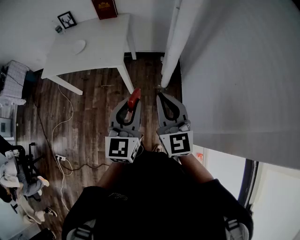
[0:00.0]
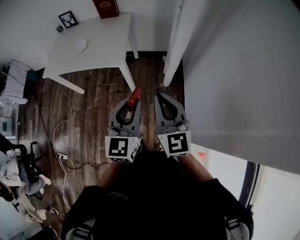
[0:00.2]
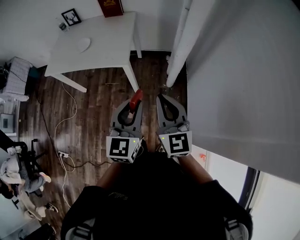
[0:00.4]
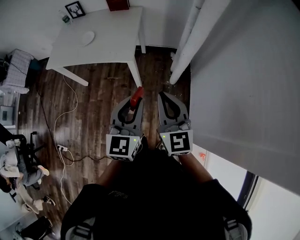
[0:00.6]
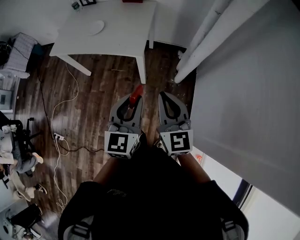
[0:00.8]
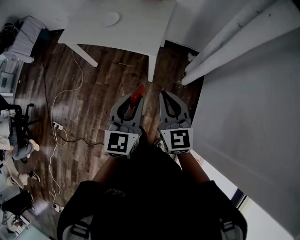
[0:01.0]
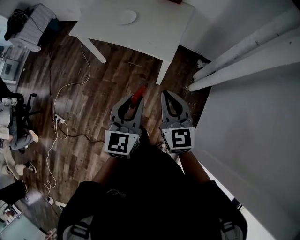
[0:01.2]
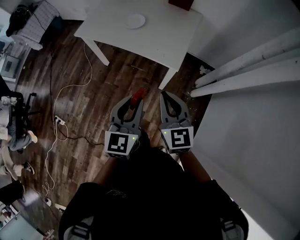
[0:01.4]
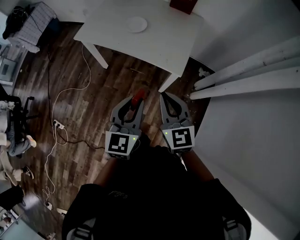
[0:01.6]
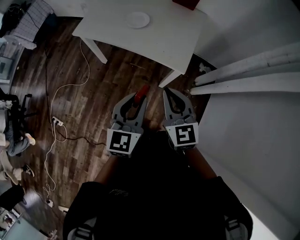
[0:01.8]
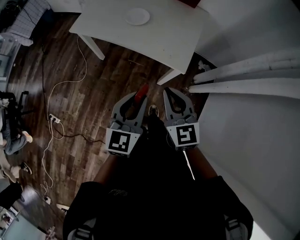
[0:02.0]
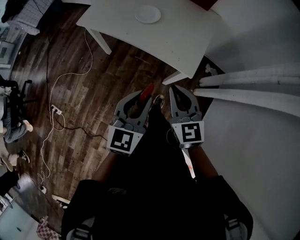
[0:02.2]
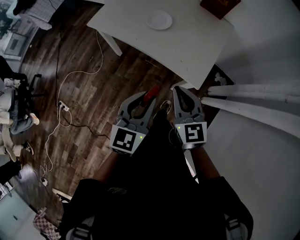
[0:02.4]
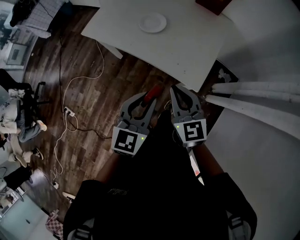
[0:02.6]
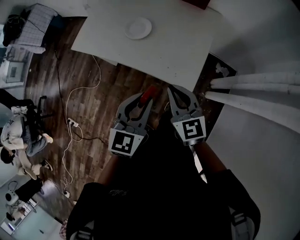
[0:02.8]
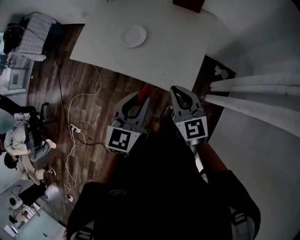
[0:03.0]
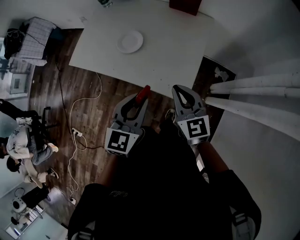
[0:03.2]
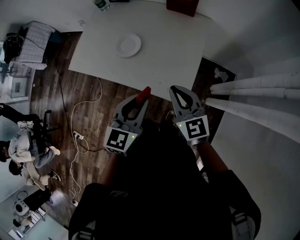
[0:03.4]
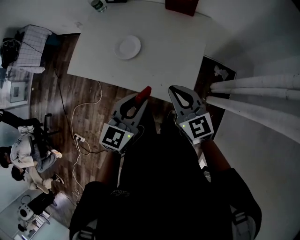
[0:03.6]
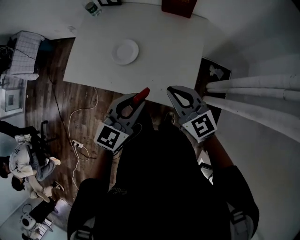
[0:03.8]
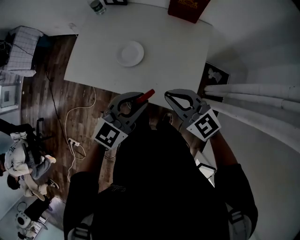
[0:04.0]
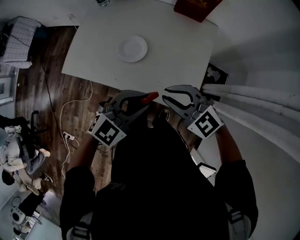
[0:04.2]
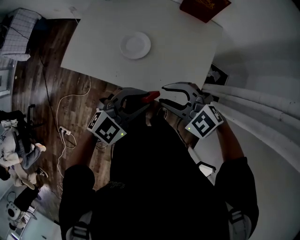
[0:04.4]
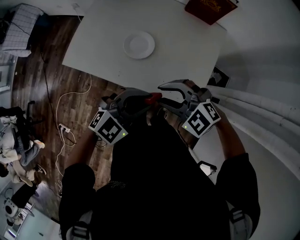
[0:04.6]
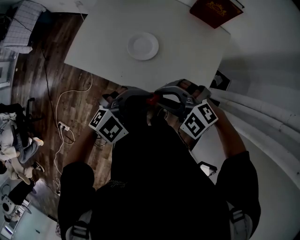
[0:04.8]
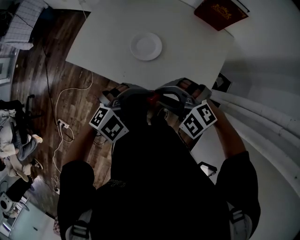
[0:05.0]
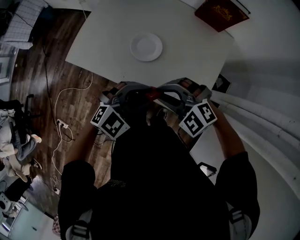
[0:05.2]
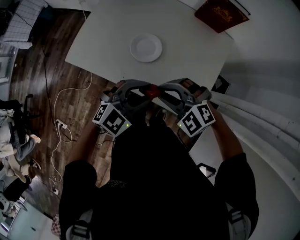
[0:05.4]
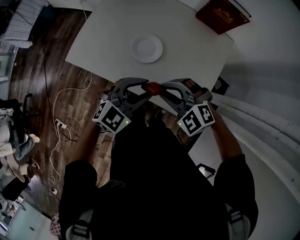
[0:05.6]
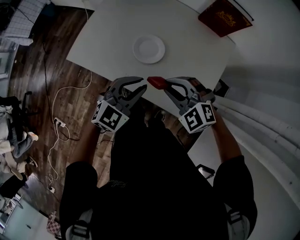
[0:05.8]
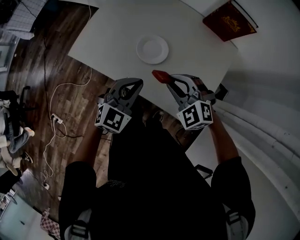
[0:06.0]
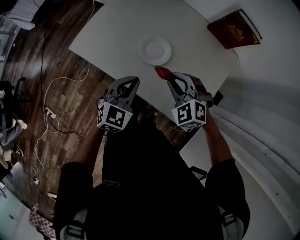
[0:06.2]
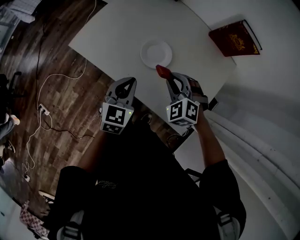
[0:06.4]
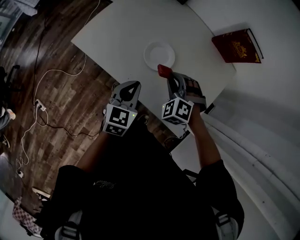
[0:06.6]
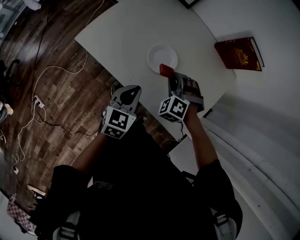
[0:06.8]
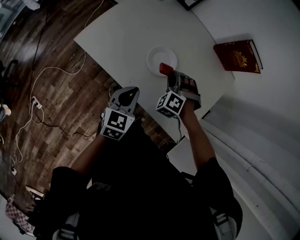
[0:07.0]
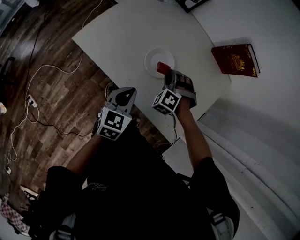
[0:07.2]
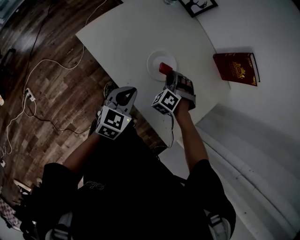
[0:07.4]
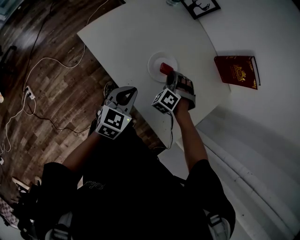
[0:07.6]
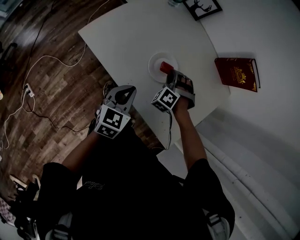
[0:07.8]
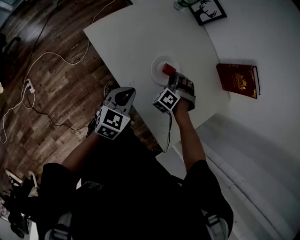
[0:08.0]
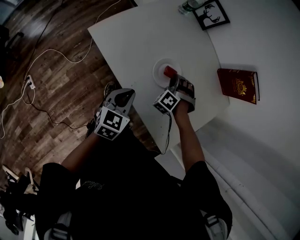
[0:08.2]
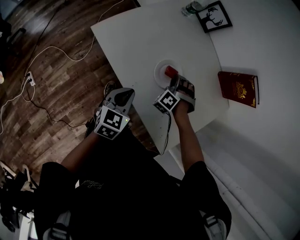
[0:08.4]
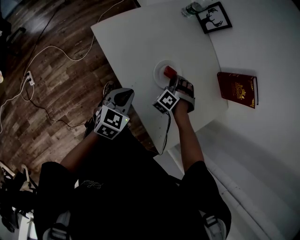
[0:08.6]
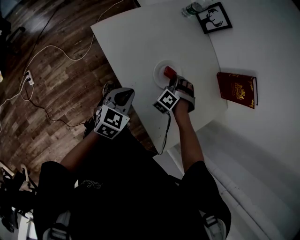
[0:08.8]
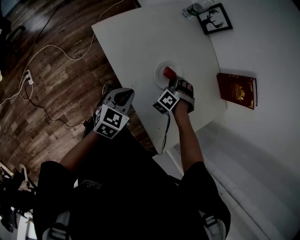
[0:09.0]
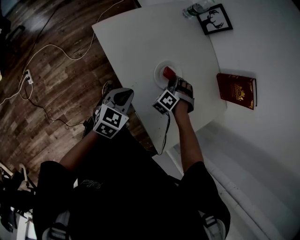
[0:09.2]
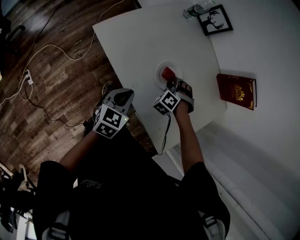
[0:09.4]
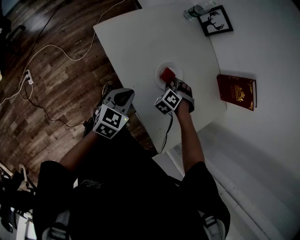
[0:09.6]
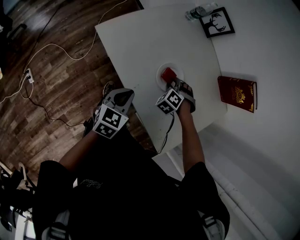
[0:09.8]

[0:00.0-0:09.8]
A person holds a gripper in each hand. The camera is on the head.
0:00.0 to 0:01.4: The grippers both shift to the left and forward by roughly 25 cm. The right gripper changes its angle by roughly 20 degrees.
0:01.4 to 0:02.8: The grippers both shift forward by roughly 20 cm.
0:02.8 to 0:04.2: The two grippers go roughly 10 cm forward. The right gripper swivels roughly 40 degrees, while the left gripper changes its angle by roughly 40 degrees.
0:04.2 to 0:05.6: The left gripper changes place by roughly 10 cm. The right gripper moves approximately 10 cm, and turns by some 30 degrees.
0:05.6 to 0:07.0: The left gripper moves to the left and downward, some 15 cm, rotates about 50 degrees, and closes. The right gripper heads forward and downward, covering approximately 20 cm, and changes its angle by approximately 40 degrees.
0:07.0 to 0:08.4: The right gripper changes place by approximately 5 cm.
0:08.4 to 0:09.8: There are only small adjustments of the grippers.

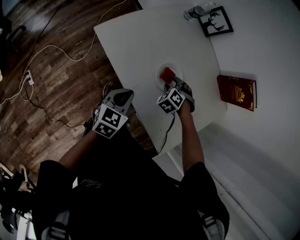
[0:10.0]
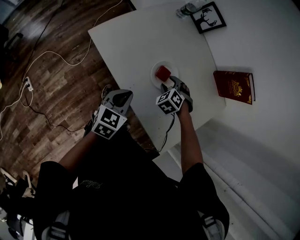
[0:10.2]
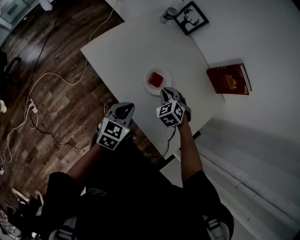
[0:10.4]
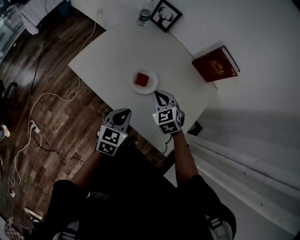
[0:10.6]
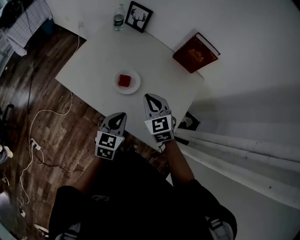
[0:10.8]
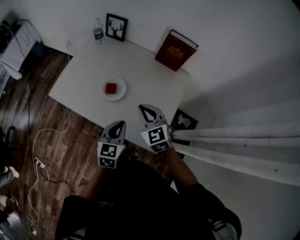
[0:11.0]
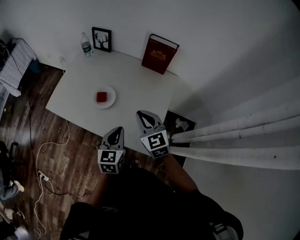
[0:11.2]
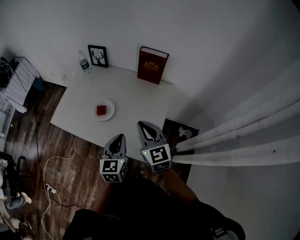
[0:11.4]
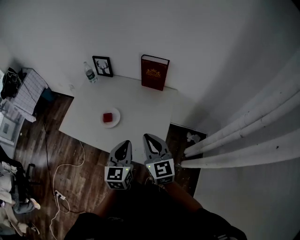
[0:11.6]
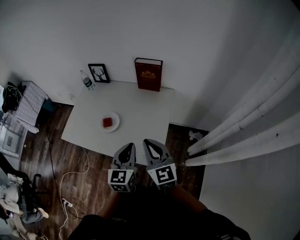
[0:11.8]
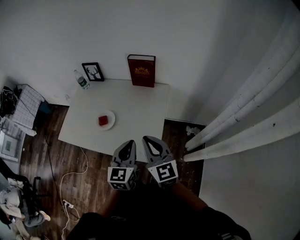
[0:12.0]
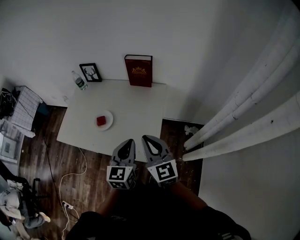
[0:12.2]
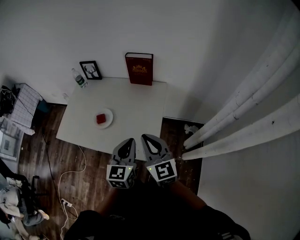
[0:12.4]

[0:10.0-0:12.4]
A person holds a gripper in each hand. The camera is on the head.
0:10.0 to 0:11.2: The left gripper heads to the right, covering approximately 25 cm. Meanwhile the right gripper moves upward, to the right and backward, approximately 35 cm, tilts its fingers roughly 50 degrees upward, and closes.
0:11.2 to 0:12.4: The right gripper travels backward, upward and to the right by about 15 cm, and swivels some 20 degrees. Meanwhile the left gripper moves to the right and upward, about 15 cm.

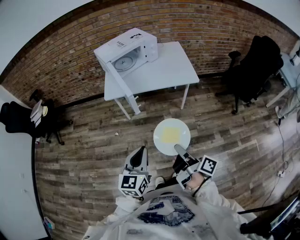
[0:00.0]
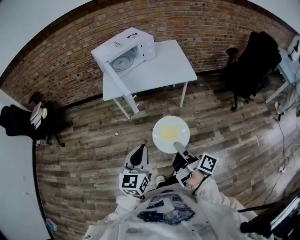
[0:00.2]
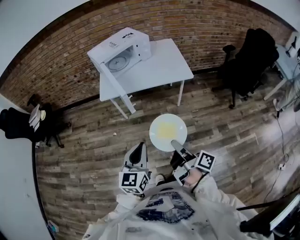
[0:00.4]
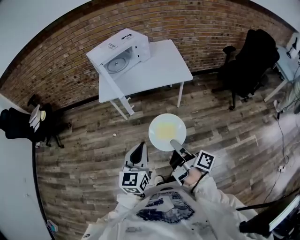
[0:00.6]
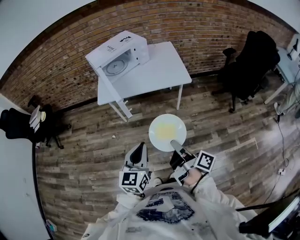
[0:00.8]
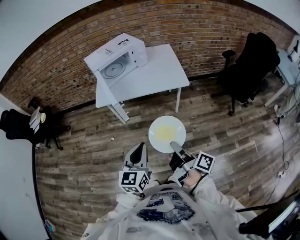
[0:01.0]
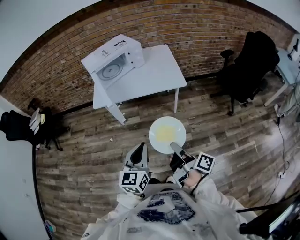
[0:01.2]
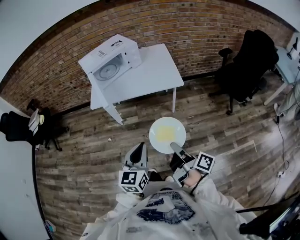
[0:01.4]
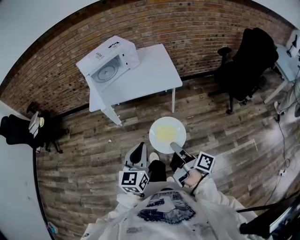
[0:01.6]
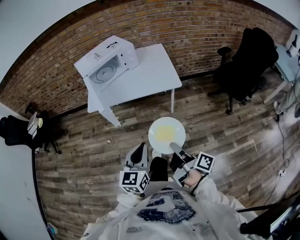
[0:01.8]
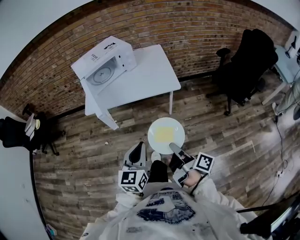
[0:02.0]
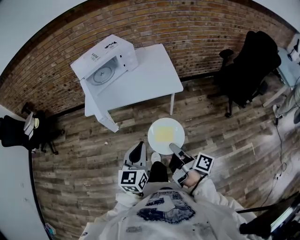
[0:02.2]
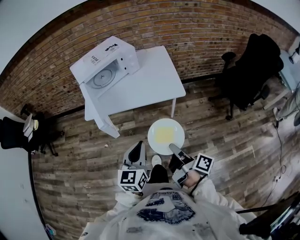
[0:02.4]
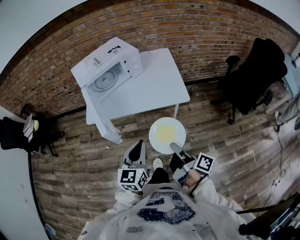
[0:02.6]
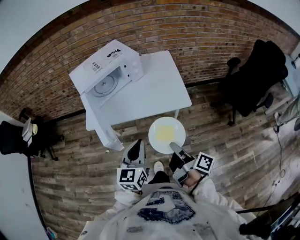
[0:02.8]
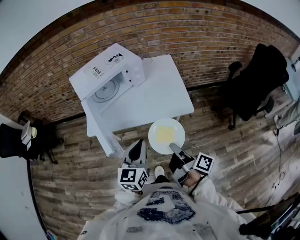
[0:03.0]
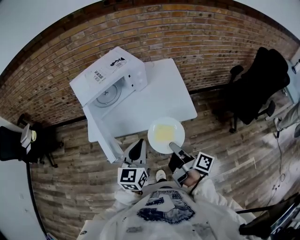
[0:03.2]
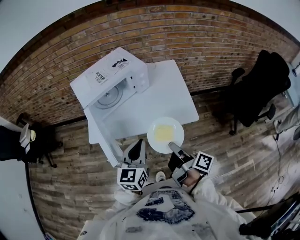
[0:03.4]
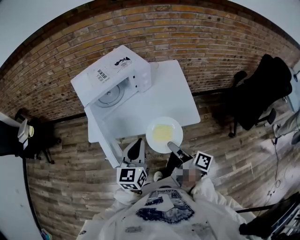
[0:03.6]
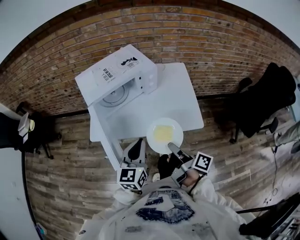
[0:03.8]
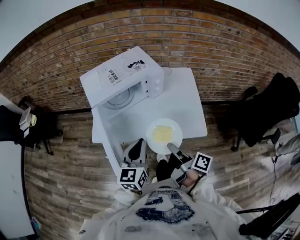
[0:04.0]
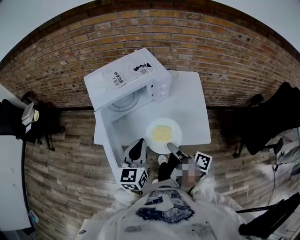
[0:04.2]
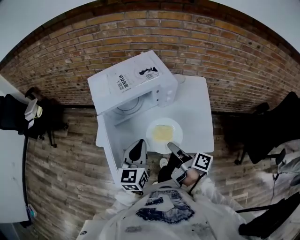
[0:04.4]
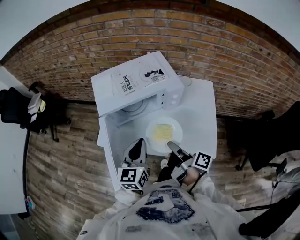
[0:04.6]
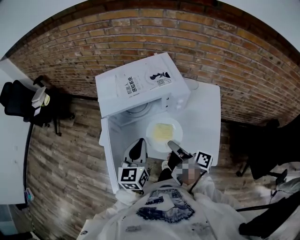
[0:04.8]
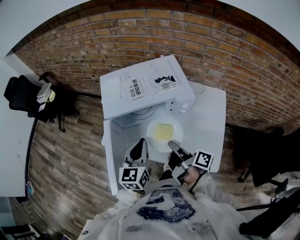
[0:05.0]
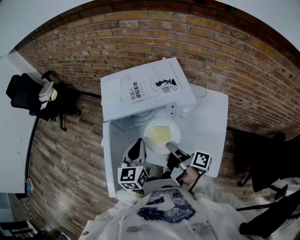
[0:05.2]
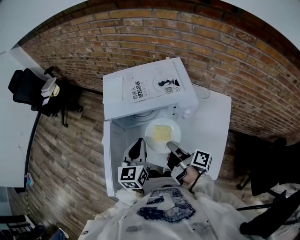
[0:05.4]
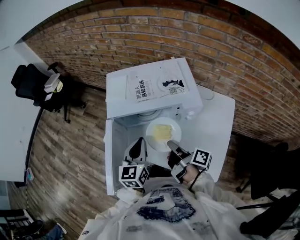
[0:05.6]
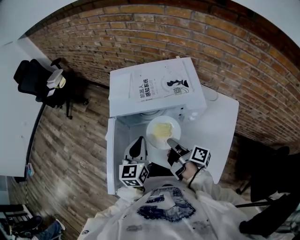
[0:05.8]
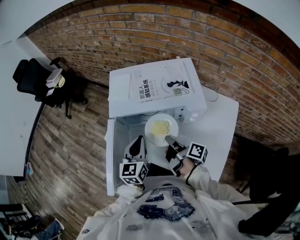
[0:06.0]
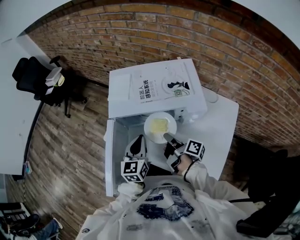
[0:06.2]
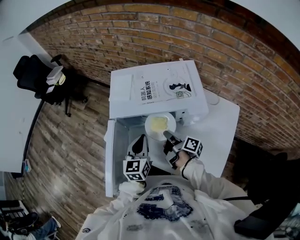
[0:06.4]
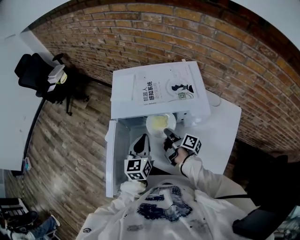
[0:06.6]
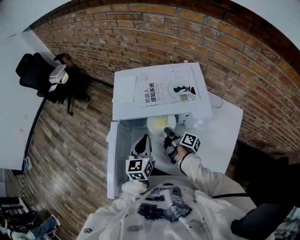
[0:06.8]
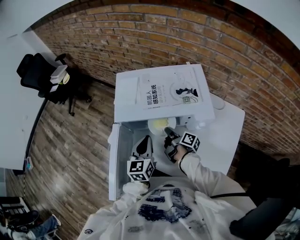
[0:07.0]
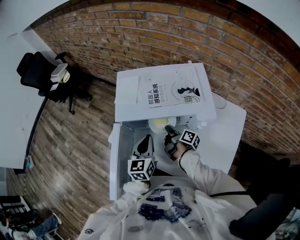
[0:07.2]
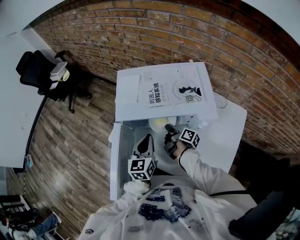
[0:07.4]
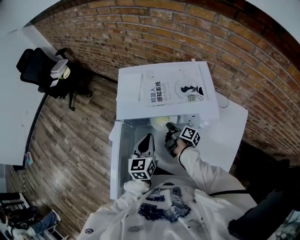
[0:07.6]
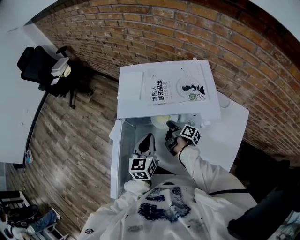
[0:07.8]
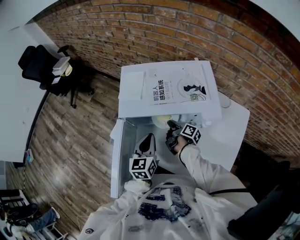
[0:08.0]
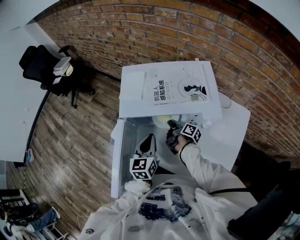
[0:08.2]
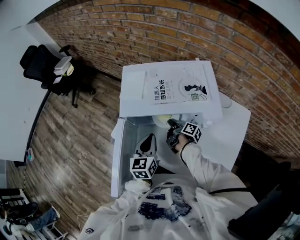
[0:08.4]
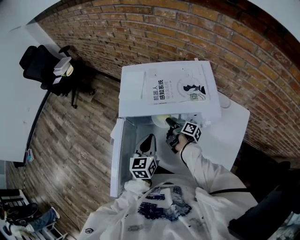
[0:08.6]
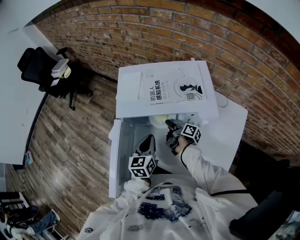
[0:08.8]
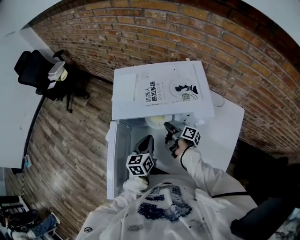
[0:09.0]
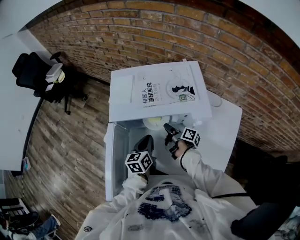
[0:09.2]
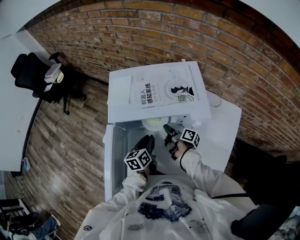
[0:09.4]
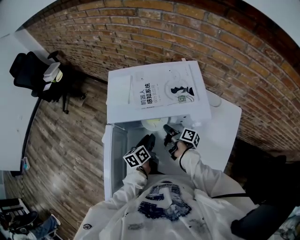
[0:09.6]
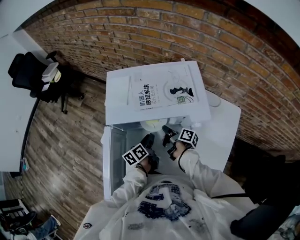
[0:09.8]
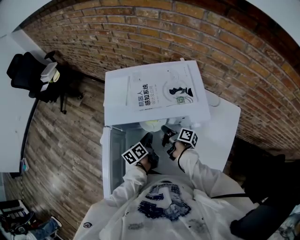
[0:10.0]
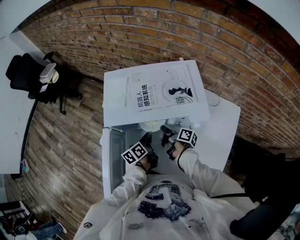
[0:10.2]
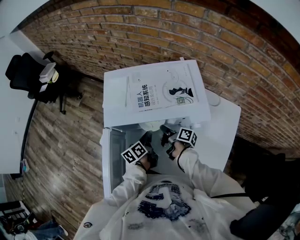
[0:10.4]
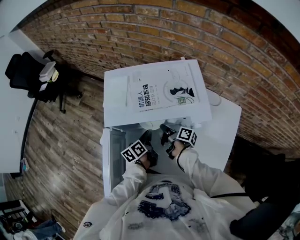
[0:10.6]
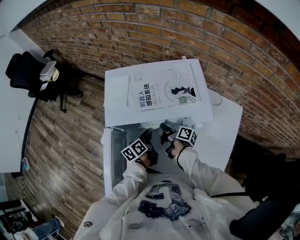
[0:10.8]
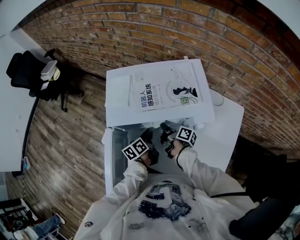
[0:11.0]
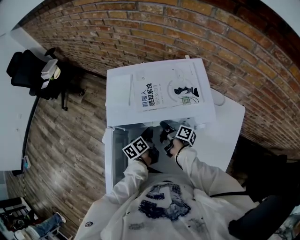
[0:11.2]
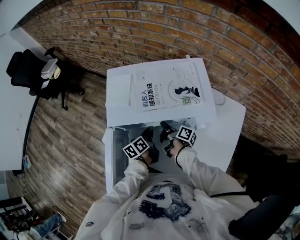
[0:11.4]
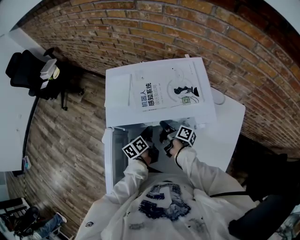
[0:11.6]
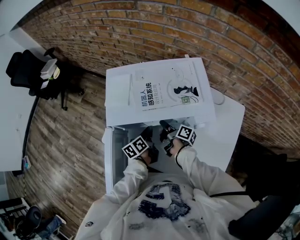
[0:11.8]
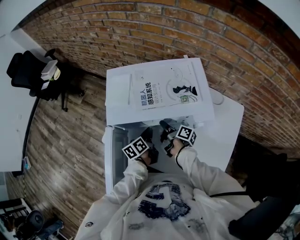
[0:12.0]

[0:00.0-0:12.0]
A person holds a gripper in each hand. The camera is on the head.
0:00.0 to 0:01.6: The left gripper shifts by some 15 cm.
0:01.6 to 0:03.0: The left gripper changes place by about 25 cm.
0:03.0 to 0:04.4: The left gripper shifts by approximately 20 cm.
0:04.4 to 0:06.0: The left gripper shifts by some 15 cm, and swivels some 20 degrees.
0:06.0 to 0:07.6: The left gripper ends up roughly 5 cm from where it was.
0:09.0 to 0:10.4: The left gripper moves downward, some 10 cm, swivels approximately 30 degrees, and opens, then closes again.
